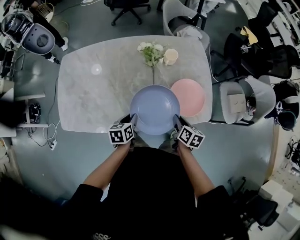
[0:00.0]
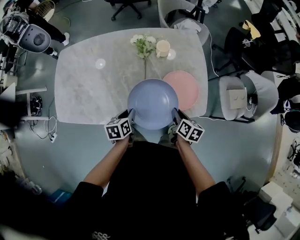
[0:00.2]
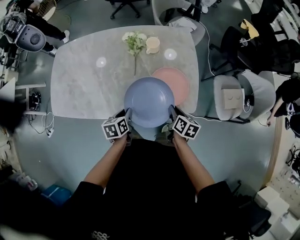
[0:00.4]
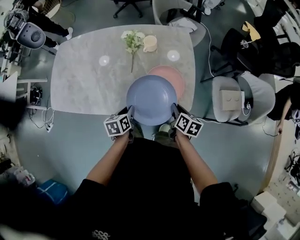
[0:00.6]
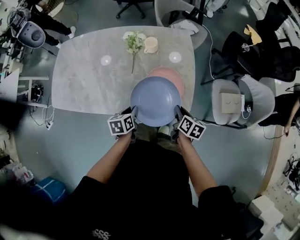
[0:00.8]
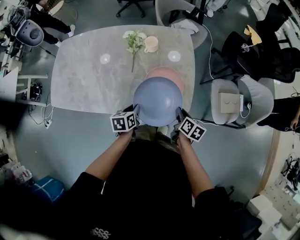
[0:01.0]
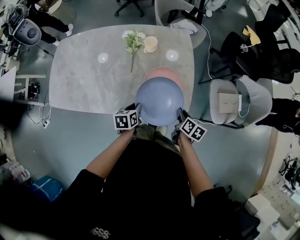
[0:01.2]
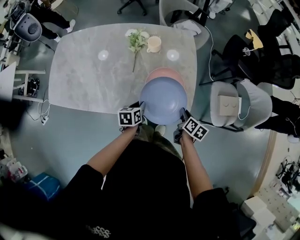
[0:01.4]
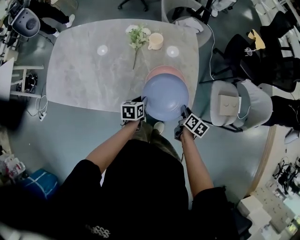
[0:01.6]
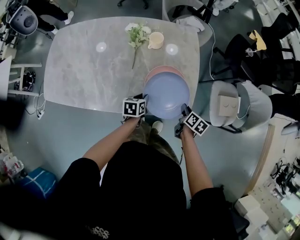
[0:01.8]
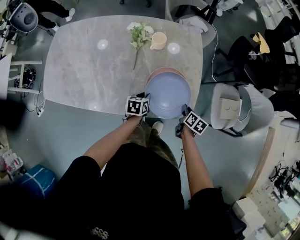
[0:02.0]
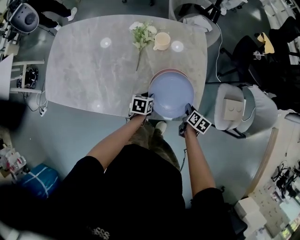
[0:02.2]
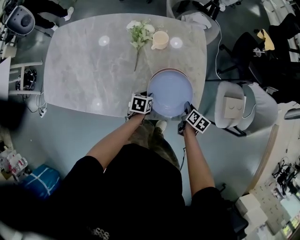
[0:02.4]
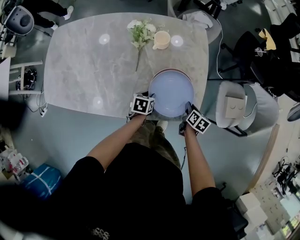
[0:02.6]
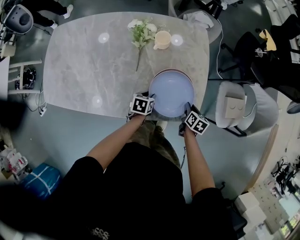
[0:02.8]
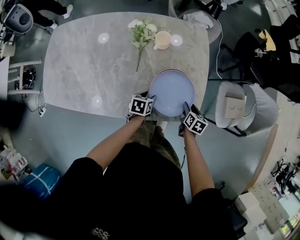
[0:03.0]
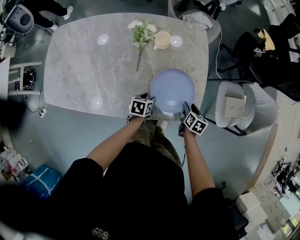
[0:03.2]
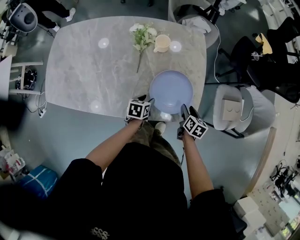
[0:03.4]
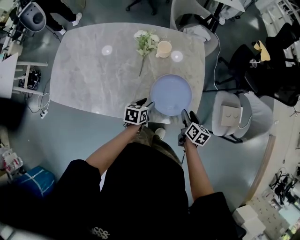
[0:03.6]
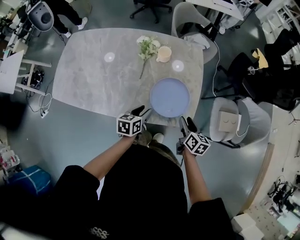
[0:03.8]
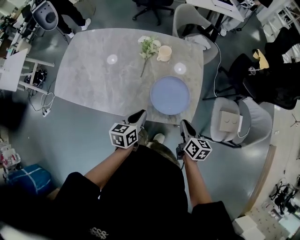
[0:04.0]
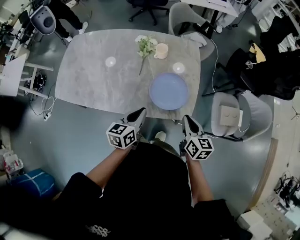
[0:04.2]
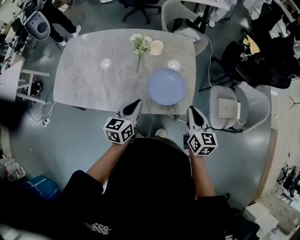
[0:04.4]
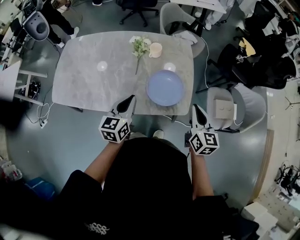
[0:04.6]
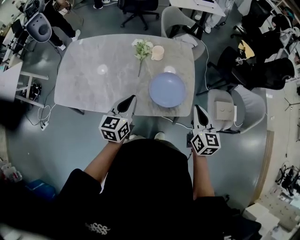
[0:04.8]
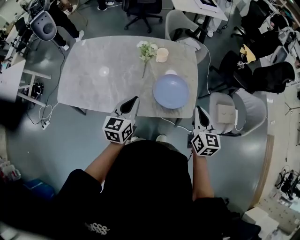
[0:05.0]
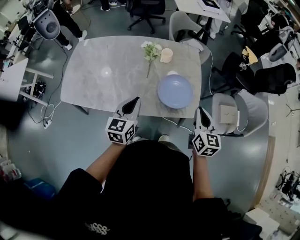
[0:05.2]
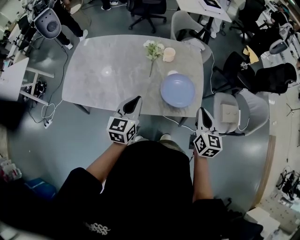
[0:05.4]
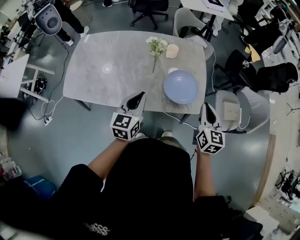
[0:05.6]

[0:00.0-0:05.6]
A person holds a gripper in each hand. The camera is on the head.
0:00.0 to 0:01.4: The grippers both shift to the right by roughly 20 cm.
0:01.4 to 0:02.8: The two grippers go some 10 cm downward and forward.
0:02.8 to 0:04.2: Both grippers move upward and backward, about 30 cm. The left gripper angles its fingers upward, by approximately 30 degrees, and closes up; the right gripper turns by approximately 30 degrees, and opens, then closes once more.
0:04.2 to 0:05.6: The right gripper travels upward by about 10 cm, and rotates about 20 degrees. The left gripper is displaced to the left and upward by approximately 15 cm, and changes its angle by about 20 degrees.

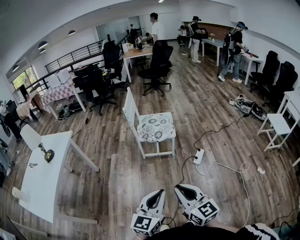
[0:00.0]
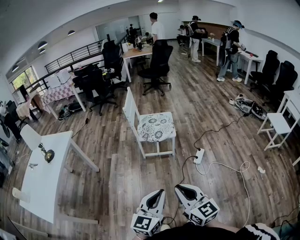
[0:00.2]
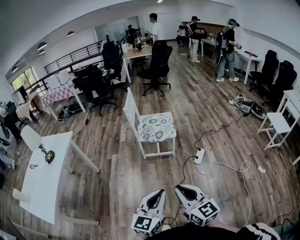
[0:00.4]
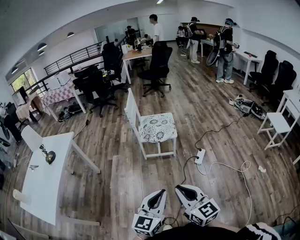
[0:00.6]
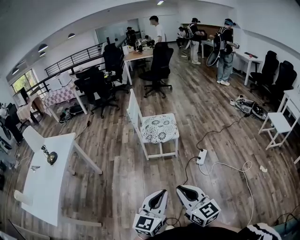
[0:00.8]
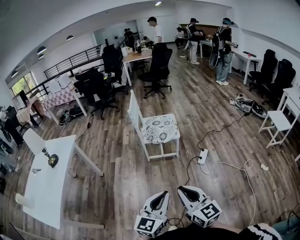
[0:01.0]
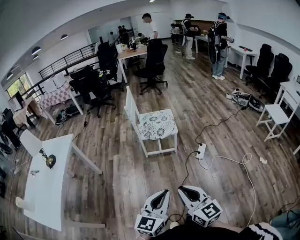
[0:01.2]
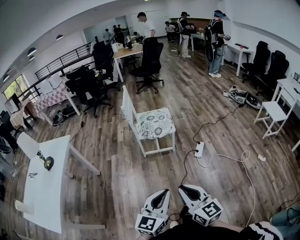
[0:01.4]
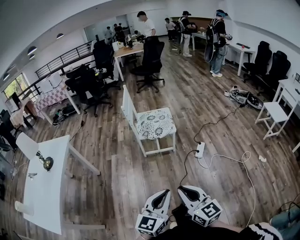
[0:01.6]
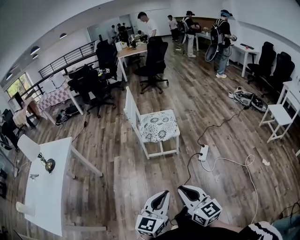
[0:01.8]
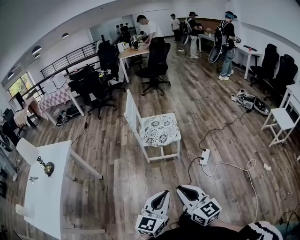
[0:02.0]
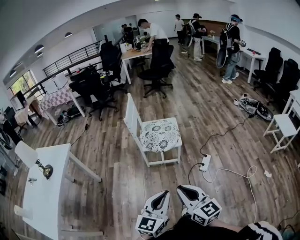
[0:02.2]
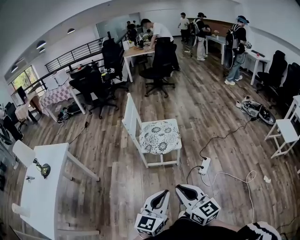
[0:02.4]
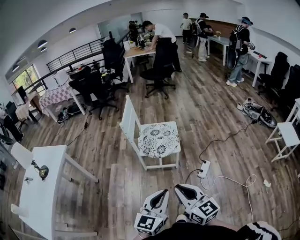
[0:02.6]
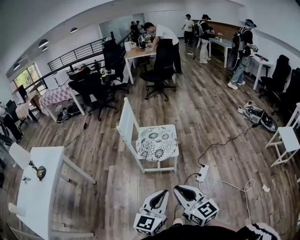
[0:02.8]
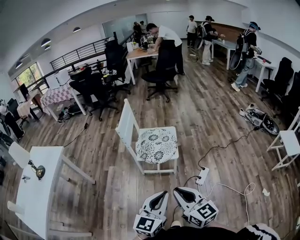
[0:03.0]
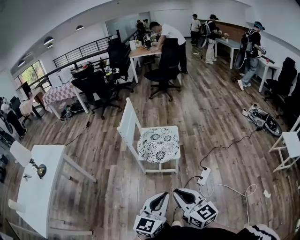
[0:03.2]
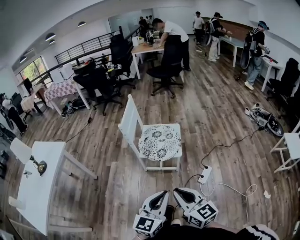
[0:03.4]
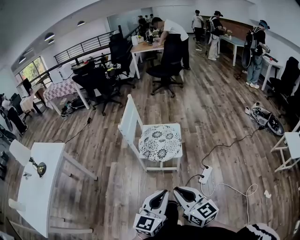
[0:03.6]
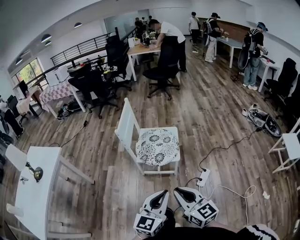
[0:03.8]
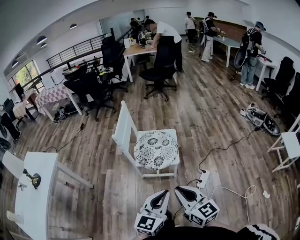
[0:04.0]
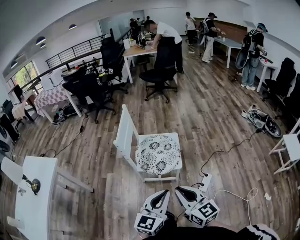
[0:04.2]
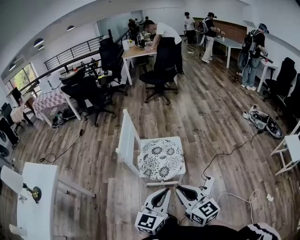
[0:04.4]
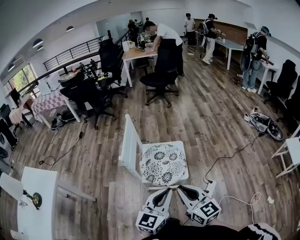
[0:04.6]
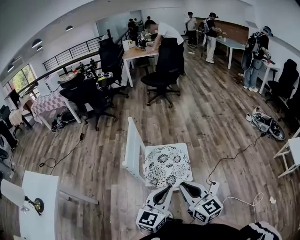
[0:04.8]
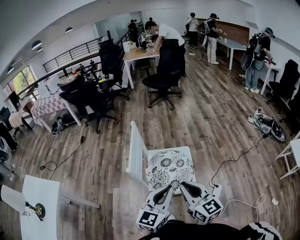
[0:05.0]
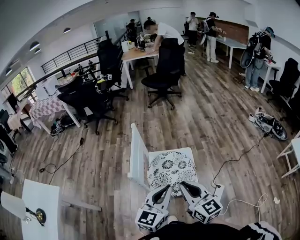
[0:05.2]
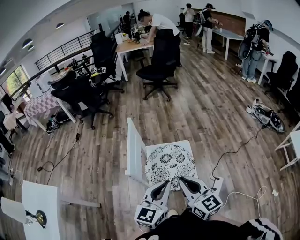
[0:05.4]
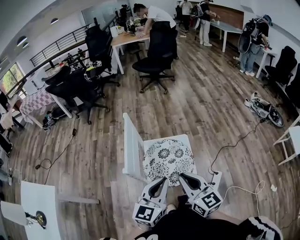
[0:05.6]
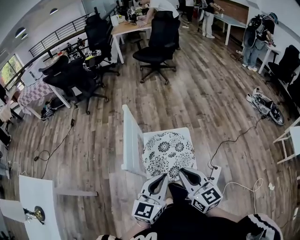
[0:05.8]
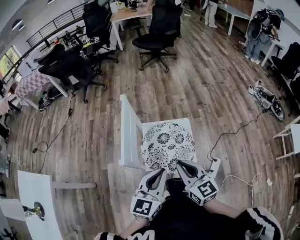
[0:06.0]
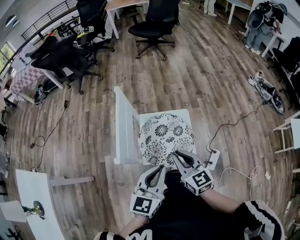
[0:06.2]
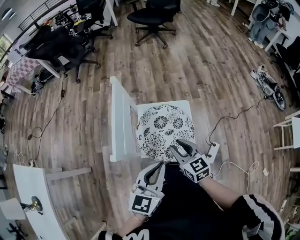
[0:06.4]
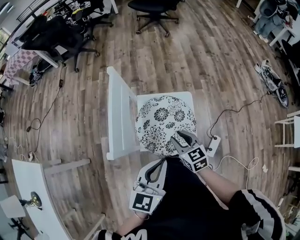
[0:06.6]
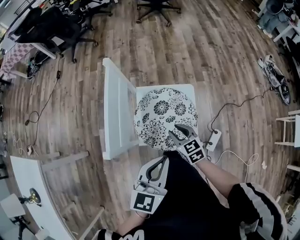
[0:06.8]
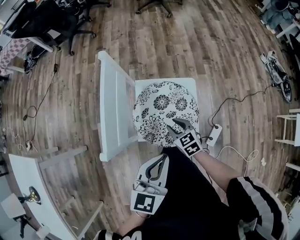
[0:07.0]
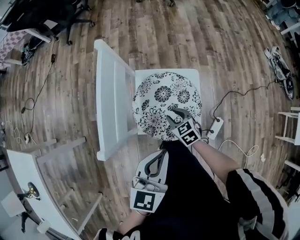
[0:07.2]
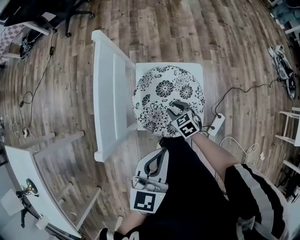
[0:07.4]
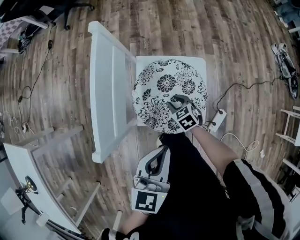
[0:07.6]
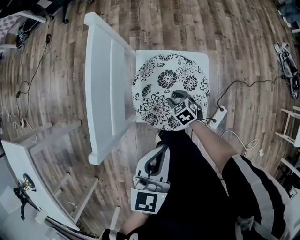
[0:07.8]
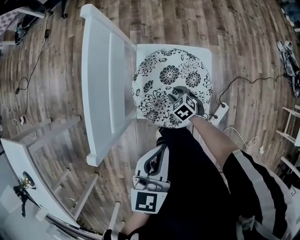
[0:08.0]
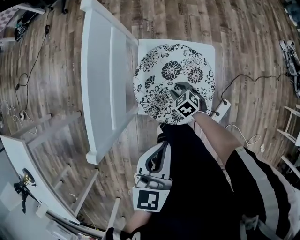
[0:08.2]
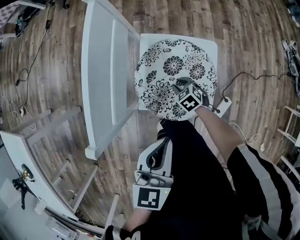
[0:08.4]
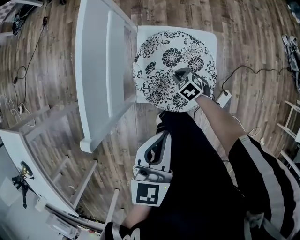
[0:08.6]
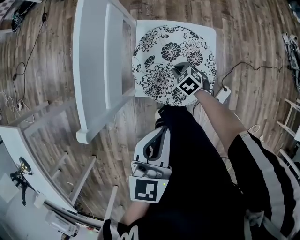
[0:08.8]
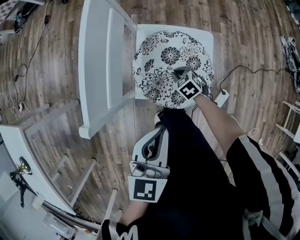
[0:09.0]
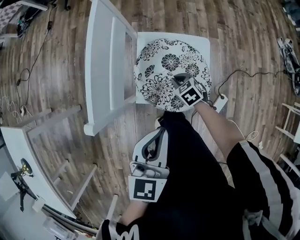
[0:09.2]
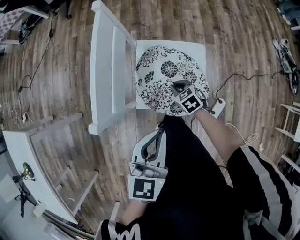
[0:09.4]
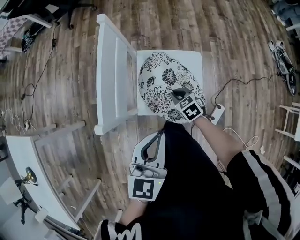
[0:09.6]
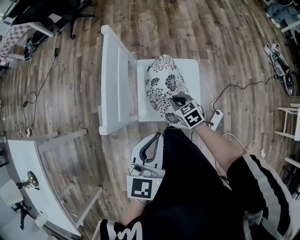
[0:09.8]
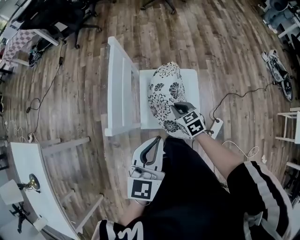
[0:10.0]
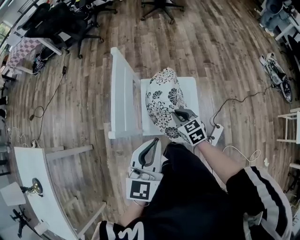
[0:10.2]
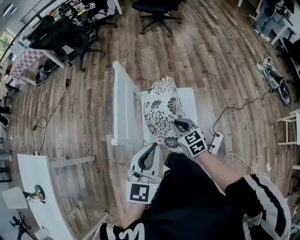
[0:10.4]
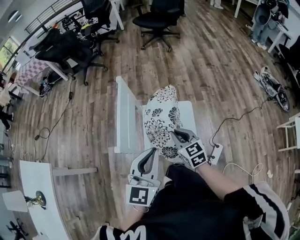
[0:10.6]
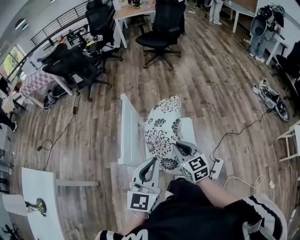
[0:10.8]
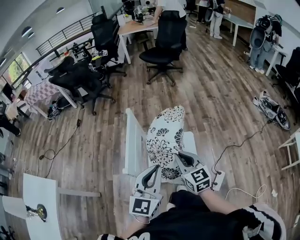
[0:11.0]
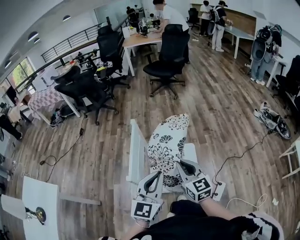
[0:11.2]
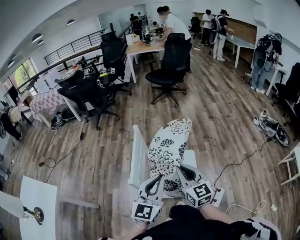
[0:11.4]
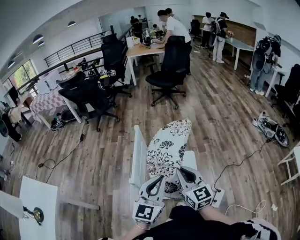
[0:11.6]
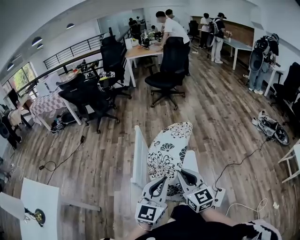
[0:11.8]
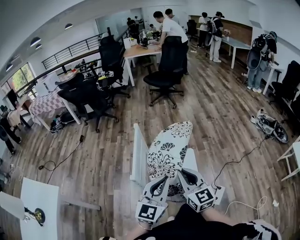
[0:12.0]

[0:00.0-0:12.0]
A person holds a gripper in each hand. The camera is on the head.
0:00.0 to 0:01.6: The right gripper shifts some 5 cm to the left.
0:01.6 to 0:03.0: The right gripper goes some 25 cm forward; the left gripper moves forward and to the right, about 25 cm.
0:03.0 to 0:04.4: The grippers both shift forward by about 20 cm.
0:04.4 to 0:06.0: The left gripper shifts some 20 cm forward and to the left. The right gripper travels forward by roughly 20 cm.
0:06.0 to 0:07.6: The left gripper heads downward, covering about 10 cm, and rotates approximately 20 degrees, while the right gripper is displaced downward by approximately 35 cm, tips its fingers downward by about 40 degrees, and opens.
0:07.6 to 0:09.0: The right gripper closes.
0:09.0 to 0:10.4: The left gripper is displaced upward by roughly 15 cm, and turns by some 20 degrees, while the right gripper is displaced upward by about 25 cm, and rotates approximately 30 degrees.
0:10.4 to 0:12.0: The right gripper heads upward, covering roughly 20 cm, and points its fingers some 30 degrees further upward. The left gripper heads upward, covering about 5 cm.

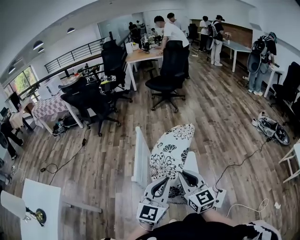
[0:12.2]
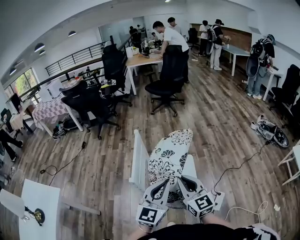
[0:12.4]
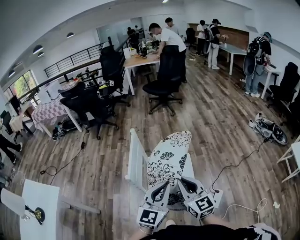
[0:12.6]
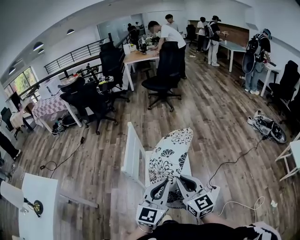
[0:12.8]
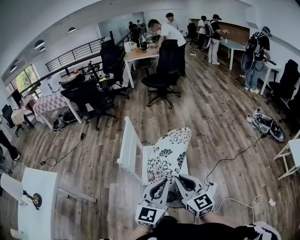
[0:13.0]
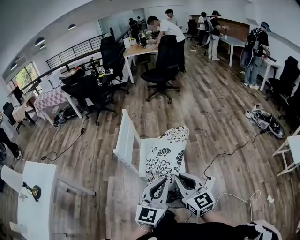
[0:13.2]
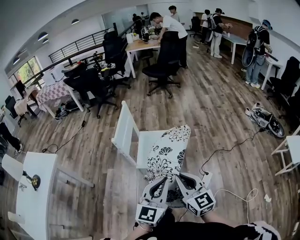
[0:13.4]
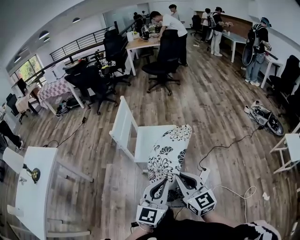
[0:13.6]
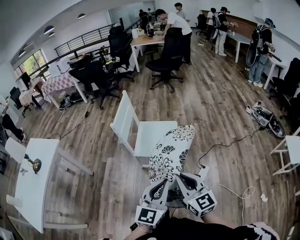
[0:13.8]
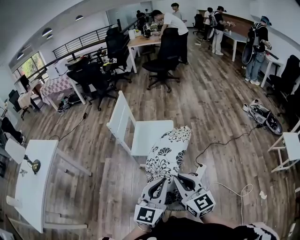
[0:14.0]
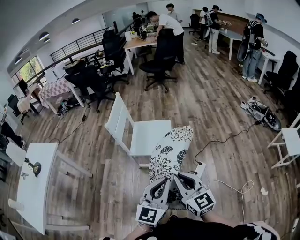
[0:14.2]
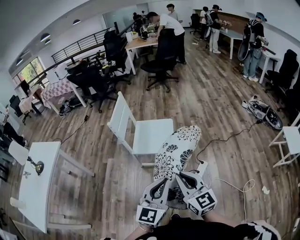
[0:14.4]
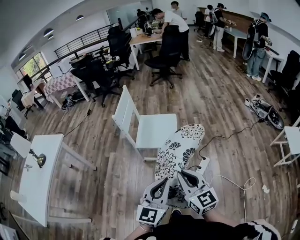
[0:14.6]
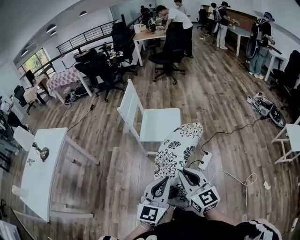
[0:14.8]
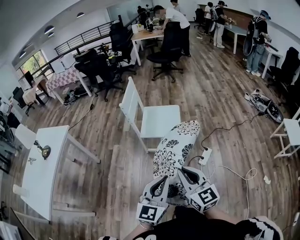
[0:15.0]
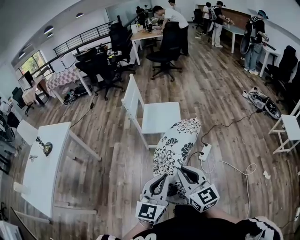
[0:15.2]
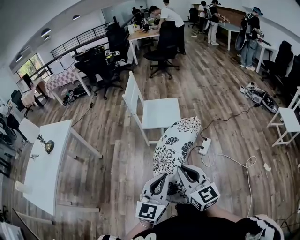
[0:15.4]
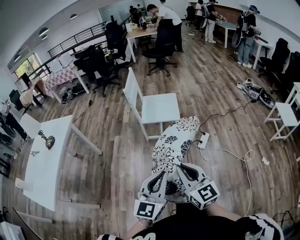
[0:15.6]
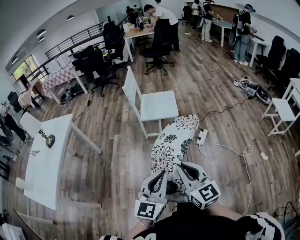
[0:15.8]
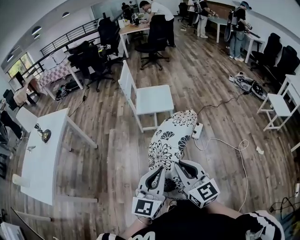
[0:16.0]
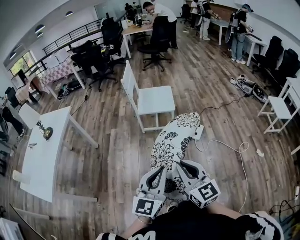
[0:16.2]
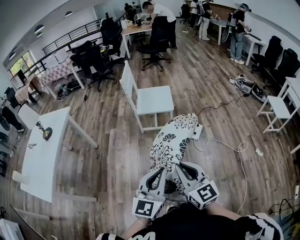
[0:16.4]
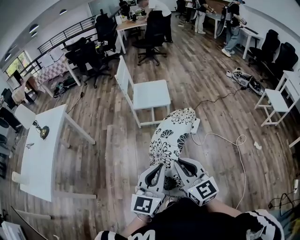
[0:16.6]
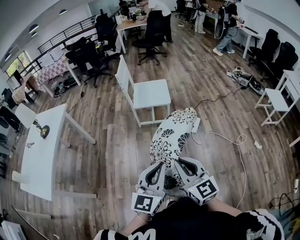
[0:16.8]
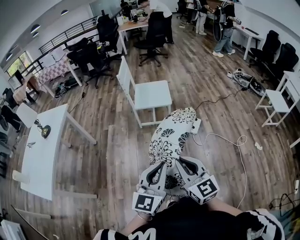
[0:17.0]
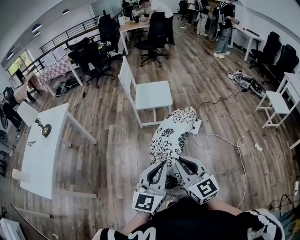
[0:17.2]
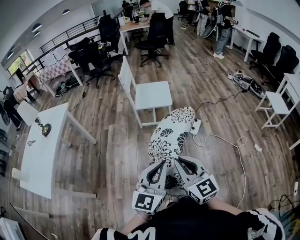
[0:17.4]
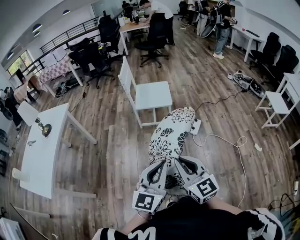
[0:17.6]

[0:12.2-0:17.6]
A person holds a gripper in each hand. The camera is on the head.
0:12.2 to 0:13.6: Both grippers travel together backward and to the right, roughly 30 cm.
0:13.6 to 0:15.0: The two grippers go some 20 cm backward.
0:15.0 to 0:16.2: Both grippers travel together backward, some 20 cm.
0:16.2 to 0:17.6: The grippers make only small movements.
